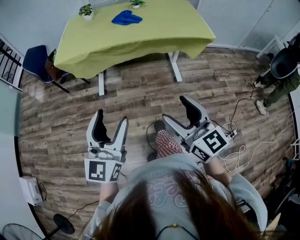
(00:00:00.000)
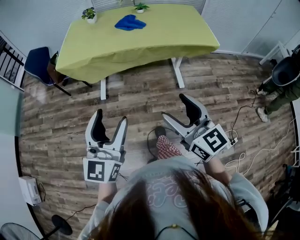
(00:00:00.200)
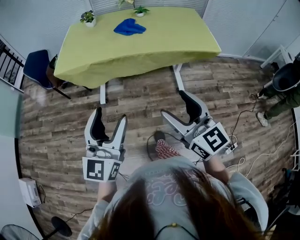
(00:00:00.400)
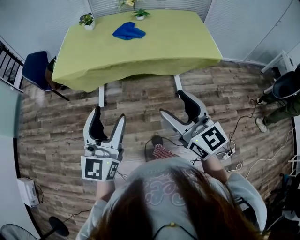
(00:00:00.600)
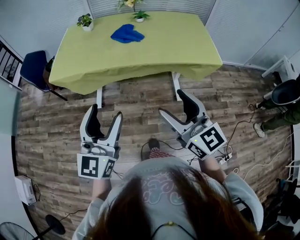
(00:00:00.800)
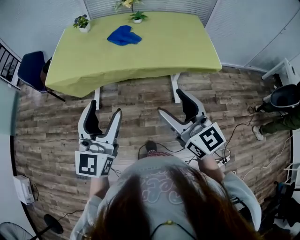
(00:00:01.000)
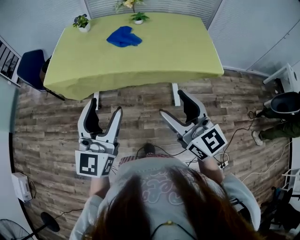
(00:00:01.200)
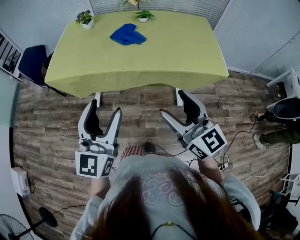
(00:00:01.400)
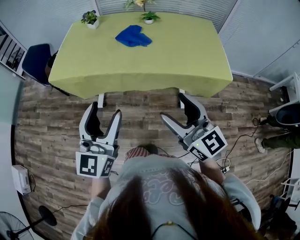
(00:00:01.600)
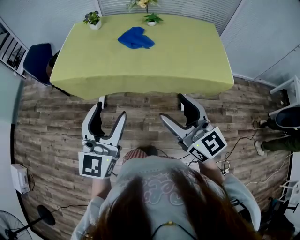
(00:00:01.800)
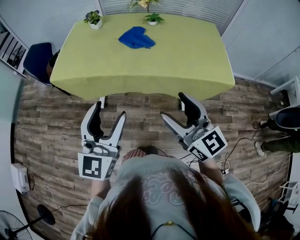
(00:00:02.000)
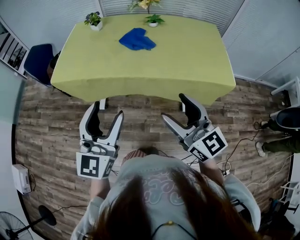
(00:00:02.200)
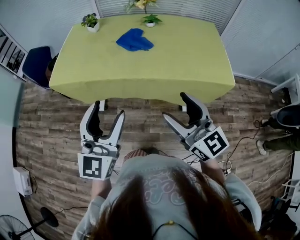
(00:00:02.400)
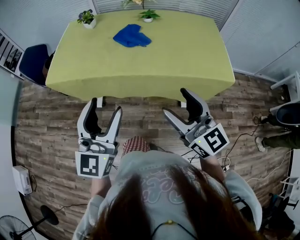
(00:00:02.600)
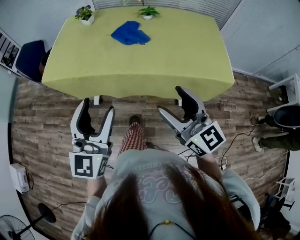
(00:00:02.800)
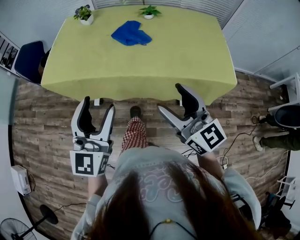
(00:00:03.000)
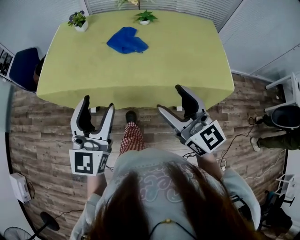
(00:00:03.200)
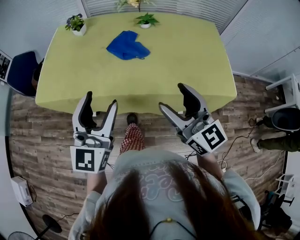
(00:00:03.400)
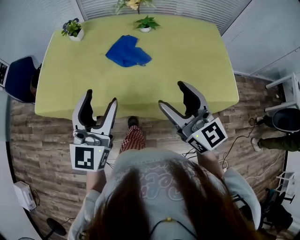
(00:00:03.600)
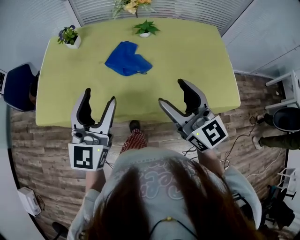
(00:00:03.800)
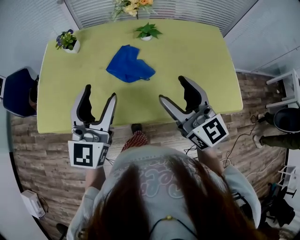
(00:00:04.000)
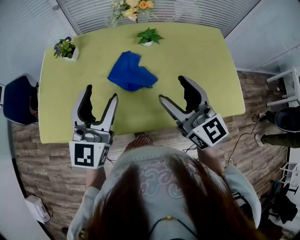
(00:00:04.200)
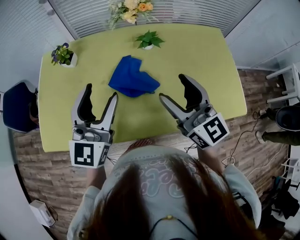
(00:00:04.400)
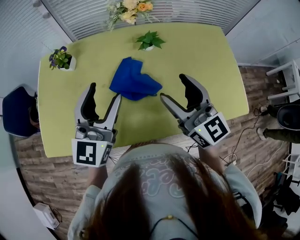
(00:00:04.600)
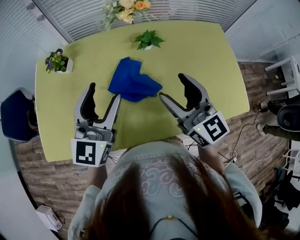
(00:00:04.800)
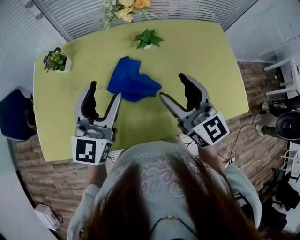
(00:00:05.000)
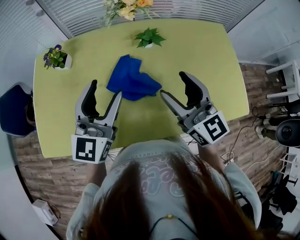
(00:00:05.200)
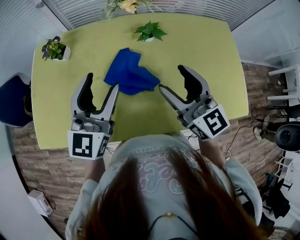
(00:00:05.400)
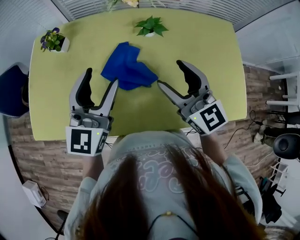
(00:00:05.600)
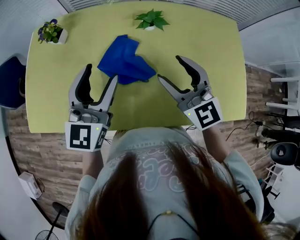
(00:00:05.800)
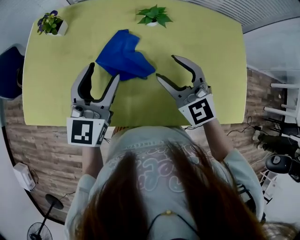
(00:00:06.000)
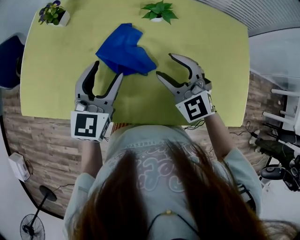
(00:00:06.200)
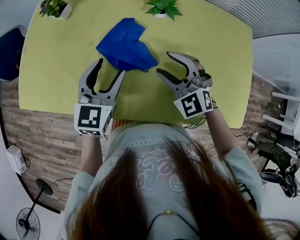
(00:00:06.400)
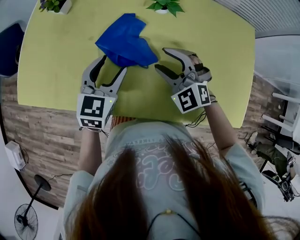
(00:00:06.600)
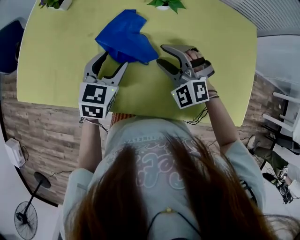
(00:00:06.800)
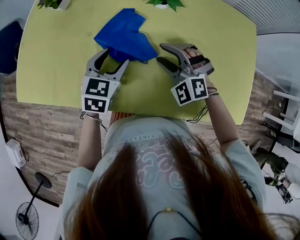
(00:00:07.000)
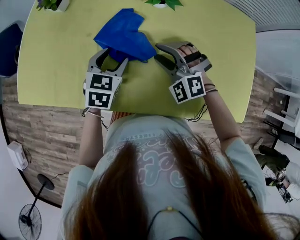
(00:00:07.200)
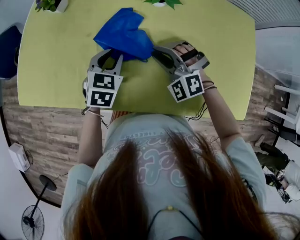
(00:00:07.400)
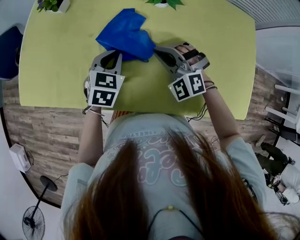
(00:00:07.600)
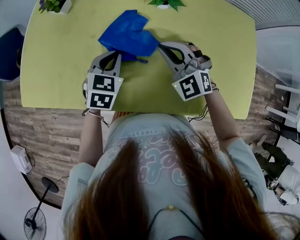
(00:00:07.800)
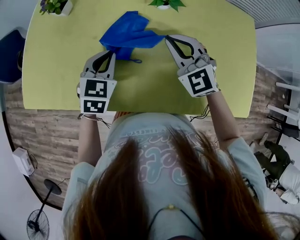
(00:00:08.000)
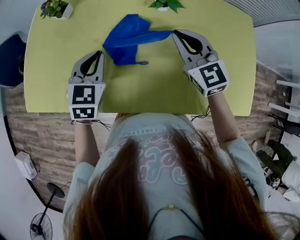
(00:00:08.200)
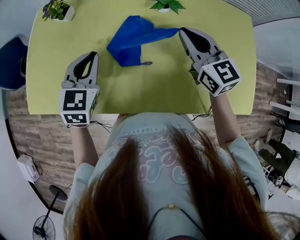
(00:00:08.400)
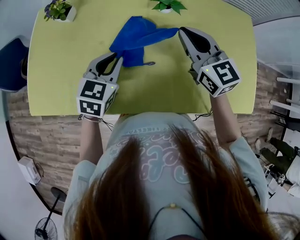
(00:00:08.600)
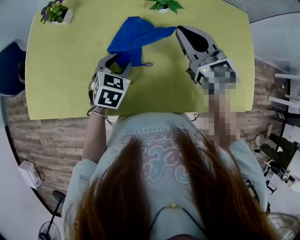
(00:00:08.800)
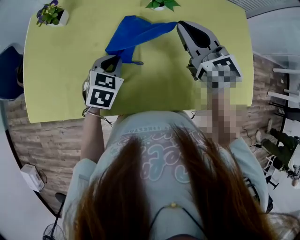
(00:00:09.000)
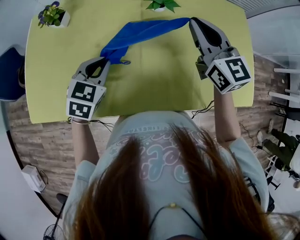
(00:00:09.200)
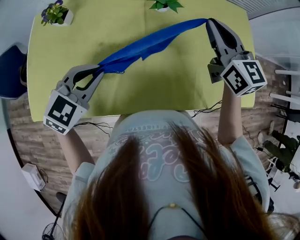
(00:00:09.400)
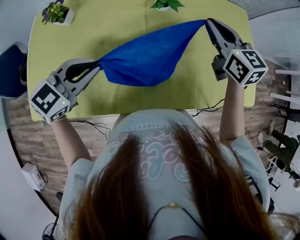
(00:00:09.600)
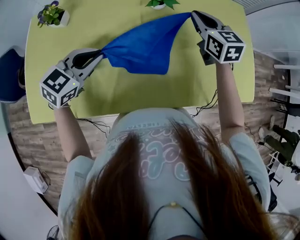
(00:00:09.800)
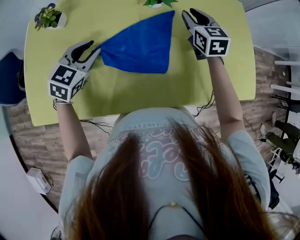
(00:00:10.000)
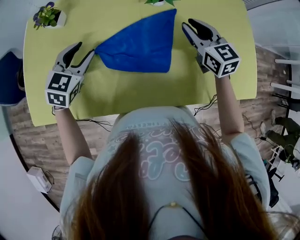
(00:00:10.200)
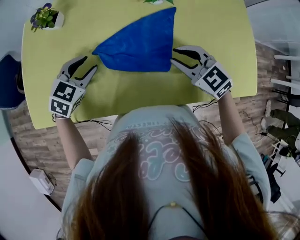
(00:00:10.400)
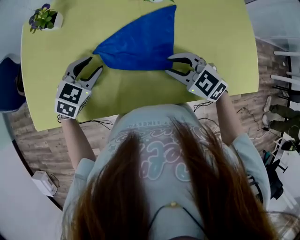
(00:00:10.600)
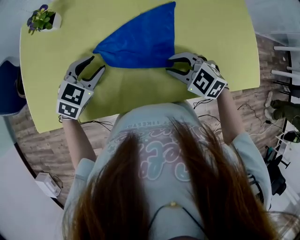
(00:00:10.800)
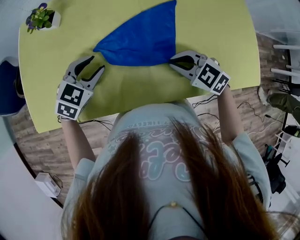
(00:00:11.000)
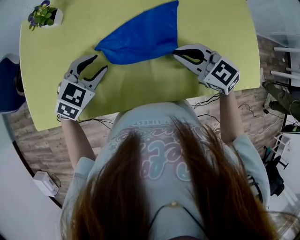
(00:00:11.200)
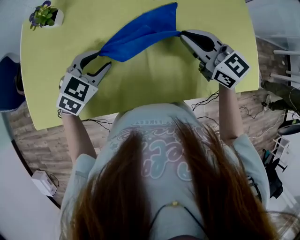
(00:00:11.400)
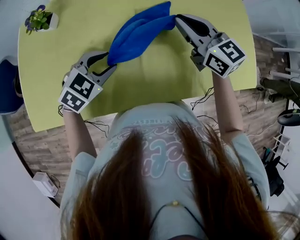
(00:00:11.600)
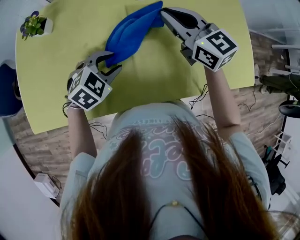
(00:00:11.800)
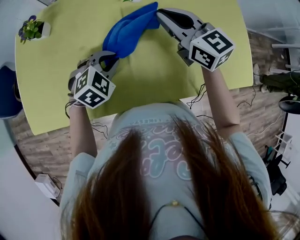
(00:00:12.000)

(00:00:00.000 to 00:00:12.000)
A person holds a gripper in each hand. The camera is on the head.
00:00:00.000 - 00:00:01.600: Both grippers travel together forward, about 25 cm.
00:00:01.600 - 00:00:03.000: The grippers both shift forward by approximately 10 cm.
00:00:03.000 - 00:00:04.400: The grippers both shift forward by roughly 35 cm.
00:00:04.400 - 00:00:06.000: The left gripper travels downward by about 10 cm. The right gripper is displaced downward and forward by about 10 cm, and changes its angle by about 40 degrees.
00:00:06.000 - 00:00:07.600: The right gripper moves downward, about 10 cm, rotates some 40 degrees, and closes, while the left gripper is displaced downward by some 15 cm, tips its fingers downward by approximately 30 degrees, and closes up.
00:00:07.600 - 00:00:09.000: The left gripper reaches about 10 cm upward, then returns, and opens and closes again. The right gripper moves upward, roughly 15 cm, and rolls clockwise, seen from behind, by some 60 degrees.
00:00:09.000 - 00:00:10.400: The left gripper heads to the left, covering roughly 10 cm, travels upward and back again, some 10 cm each way, and opens. The right gripper moves downward and backward, roughly 15 cm, and swivels about 30 degrees.
00:00:10.400 - 00:00:12.000: The right gripper goes roughly 15 cm upward and forward, and swivels approximately 30 degrees; the left gripper heads to the right, covering roughly 15 cm, rotates approximately 20 degrees, and closes.

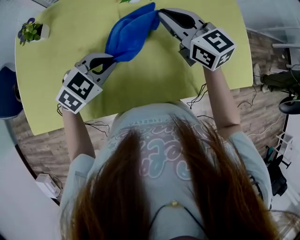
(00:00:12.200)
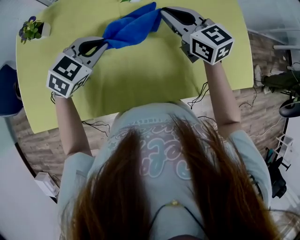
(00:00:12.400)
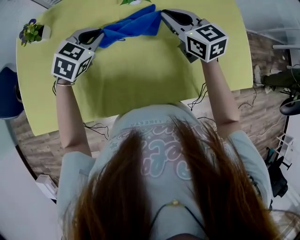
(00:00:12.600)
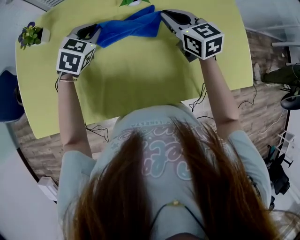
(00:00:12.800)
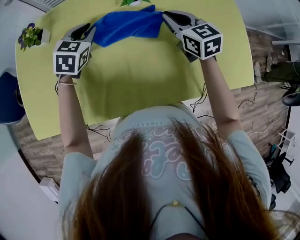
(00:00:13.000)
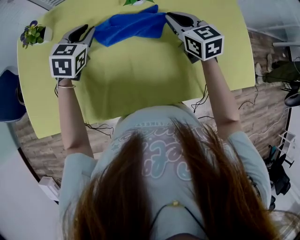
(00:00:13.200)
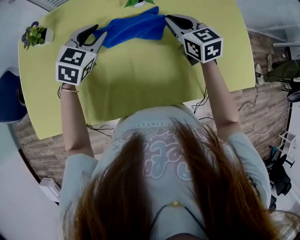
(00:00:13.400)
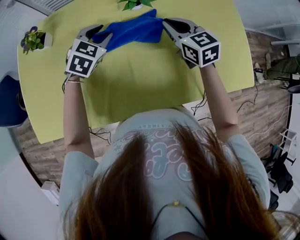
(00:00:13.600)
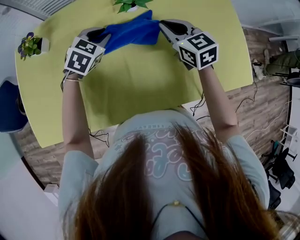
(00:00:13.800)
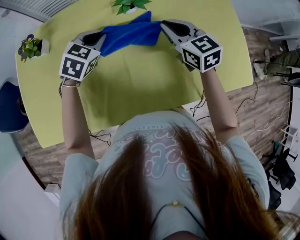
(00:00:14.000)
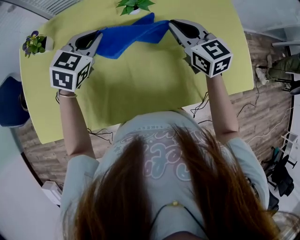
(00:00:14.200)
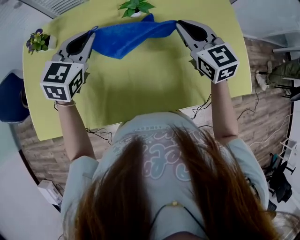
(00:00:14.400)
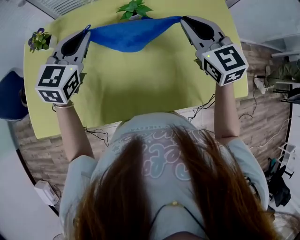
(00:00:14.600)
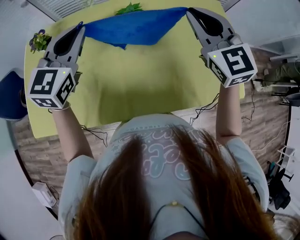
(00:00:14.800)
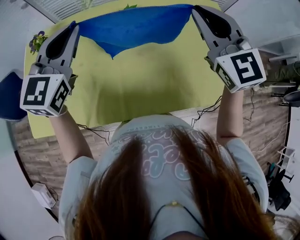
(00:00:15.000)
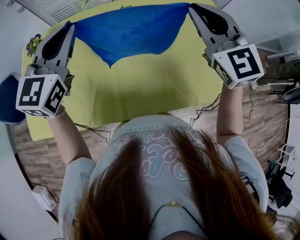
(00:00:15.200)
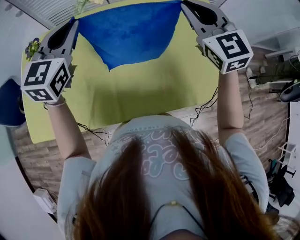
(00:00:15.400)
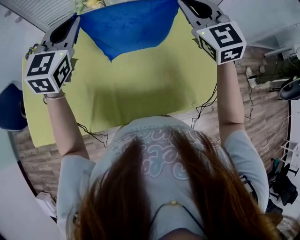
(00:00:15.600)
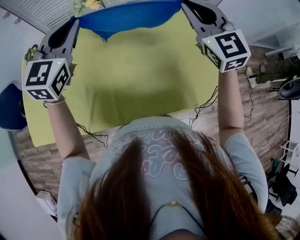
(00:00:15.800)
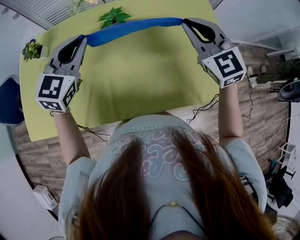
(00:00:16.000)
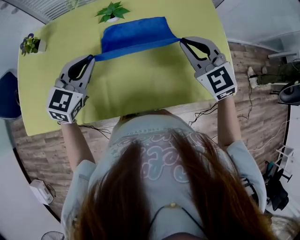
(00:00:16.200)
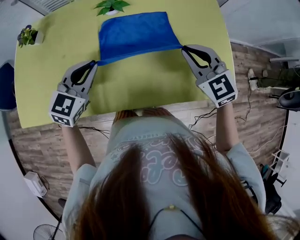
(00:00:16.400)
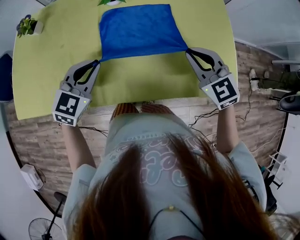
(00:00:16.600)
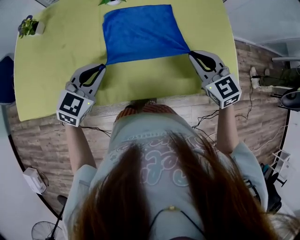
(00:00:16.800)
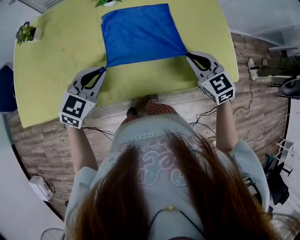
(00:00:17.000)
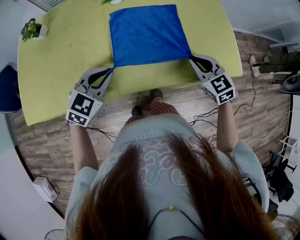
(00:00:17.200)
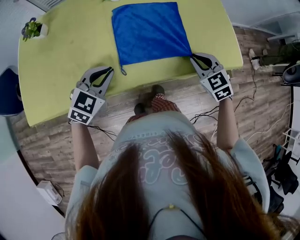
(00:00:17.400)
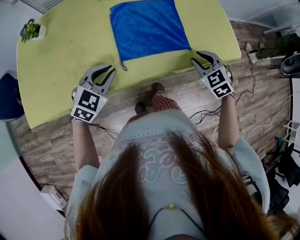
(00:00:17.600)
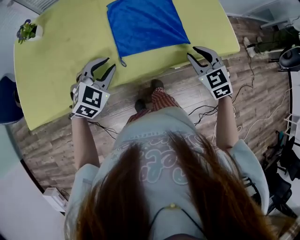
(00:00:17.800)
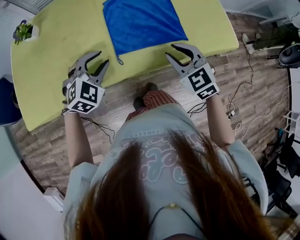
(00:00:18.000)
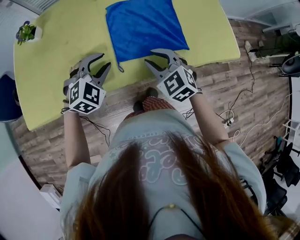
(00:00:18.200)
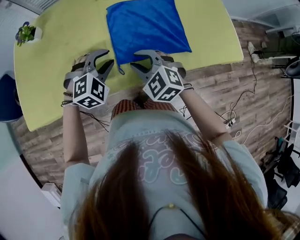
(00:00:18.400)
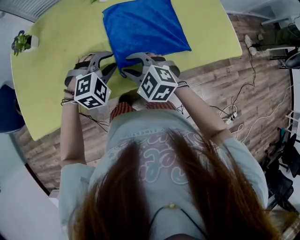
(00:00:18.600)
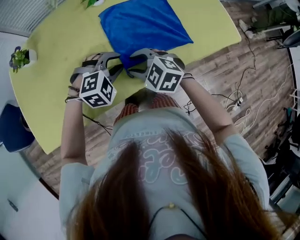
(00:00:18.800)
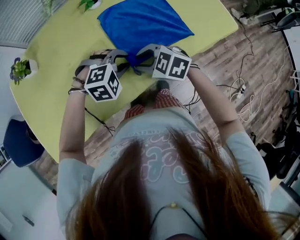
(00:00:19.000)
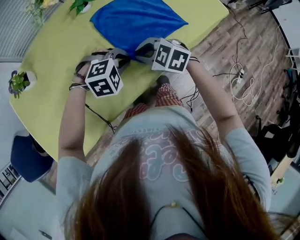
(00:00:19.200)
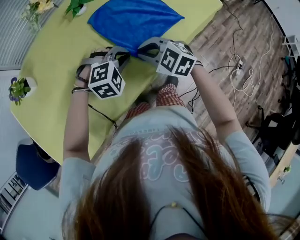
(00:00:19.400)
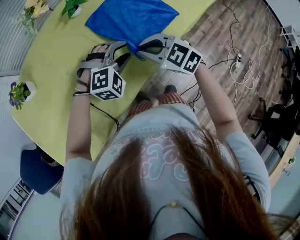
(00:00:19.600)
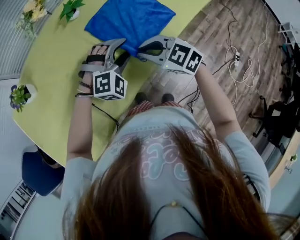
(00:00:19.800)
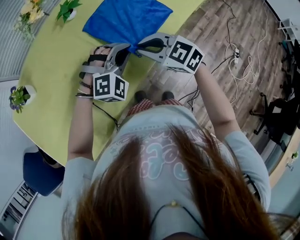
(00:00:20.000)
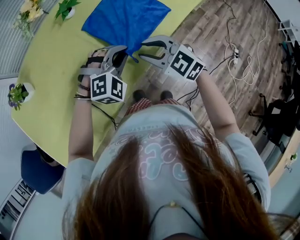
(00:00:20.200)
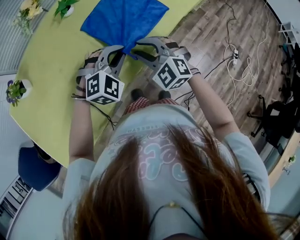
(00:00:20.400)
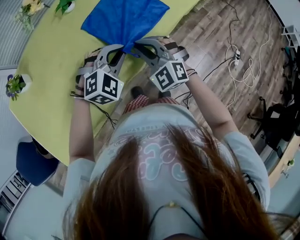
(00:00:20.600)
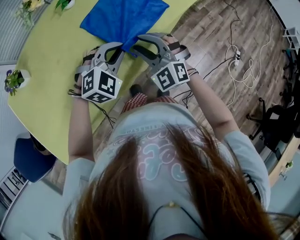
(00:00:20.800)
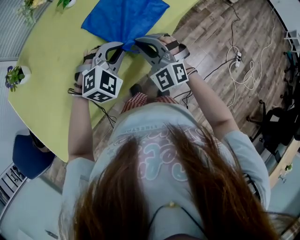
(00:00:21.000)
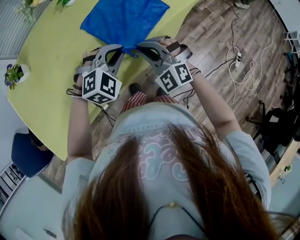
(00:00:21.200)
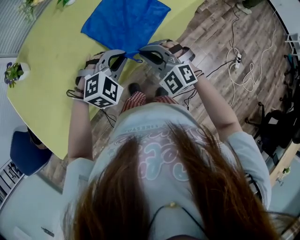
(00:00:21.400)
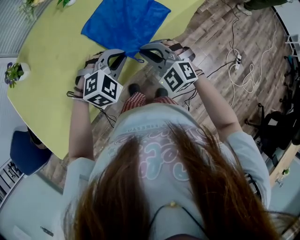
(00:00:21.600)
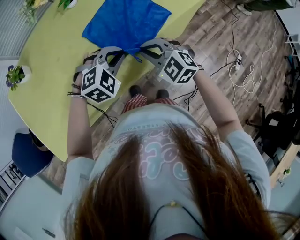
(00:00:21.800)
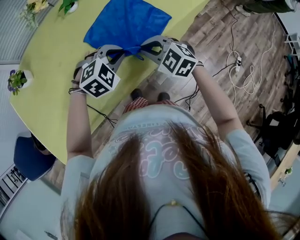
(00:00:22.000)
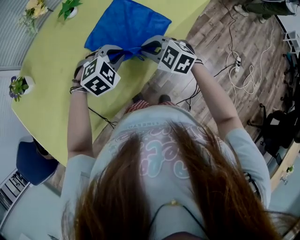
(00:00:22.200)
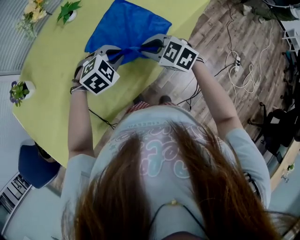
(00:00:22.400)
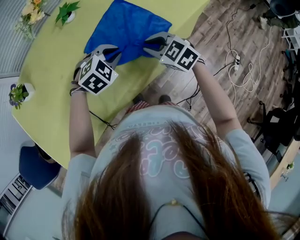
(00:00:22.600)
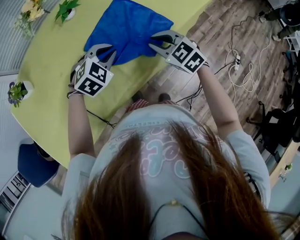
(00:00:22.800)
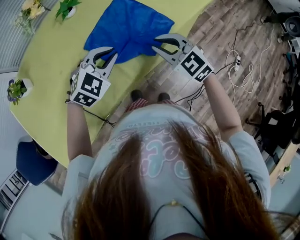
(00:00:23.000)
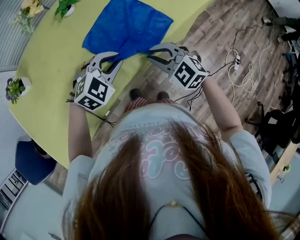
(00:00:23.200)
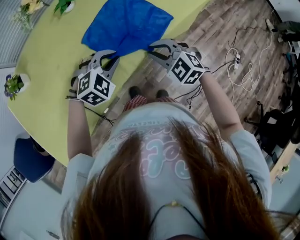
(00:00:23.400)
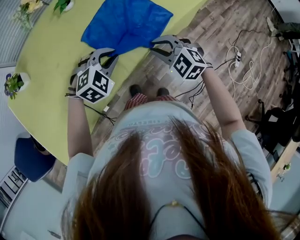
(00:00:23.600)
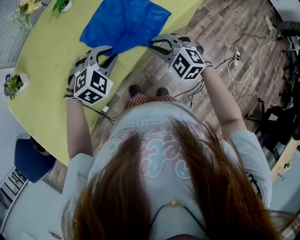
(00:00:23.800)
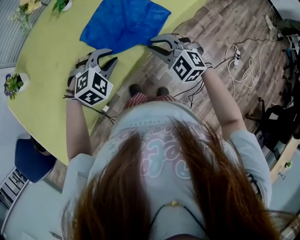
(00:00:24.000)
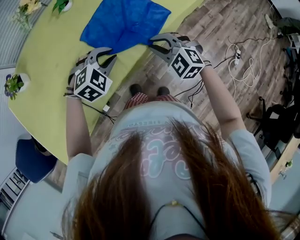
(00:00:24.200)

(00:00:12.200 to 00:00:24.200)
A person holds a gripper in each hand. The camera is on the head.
00:00:12.200 - 00:00:13.800: The right gripper moves downward, roughly 5 cm; the left gripper moves forward, roughly 15 cm.
00:00:13.800 - 00:00:15.200: Both grippers travel together upward, about 25 cm. The right gripper swivels some 30 degrees. Meanwhile the left gripper angles its fingers upward, by roughly 40 degrees.
00:00:15.200 - 00:00:16.600: The two grippers go approximately 25 cm downward and backward. The left gripper turns by about 20 degrees. The right gripper rotates about 20 degrees.
00:00:16.600 - 00:00:18.200: The right gripper moves to the left and backward, some 20 cm. The left gripper is displaced downward by approximately 5 cm, and rotates about 30 degrees.
00:00:18.200 - 00:00:19.800: The left gripper changes place by about 5 cm, and rolls clockwise, seen from behind, by roughly 40 degrees. Meanwhile the right gripper shifts by some 10 cm, and swivels approximately 20 degrees.
00:00:19.800 - 00:00:21.200: The grippers both shift backward by about 5 cm. The right gripper swivels roughly 40 degrees, and opens, then closes again. The left gripper closes its fingers.
00:00:21.200 - 00:00:22.600: Both grippers move forward, approximately 10 cm. The right gripper rotates roughly 40 degrees.
00:00:22.600 - 00:00:24.200: The left gripper heads backward, covering about 5 cm, while the right gripper shifts by roughly 5 cm, and swivels roughly 20 degrees.
